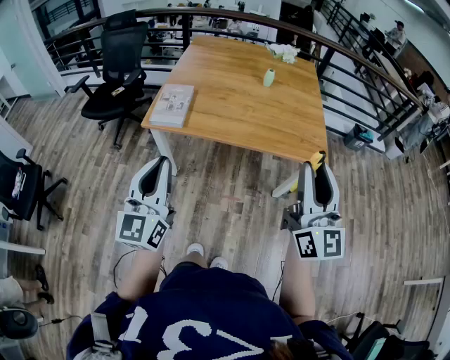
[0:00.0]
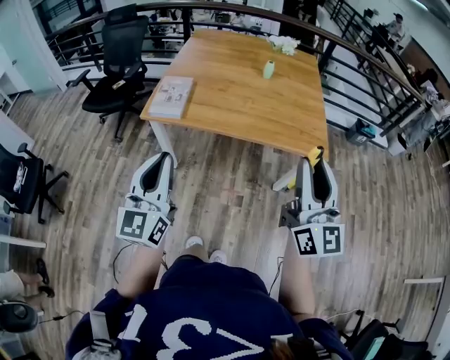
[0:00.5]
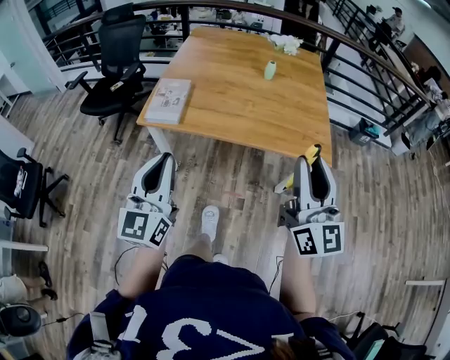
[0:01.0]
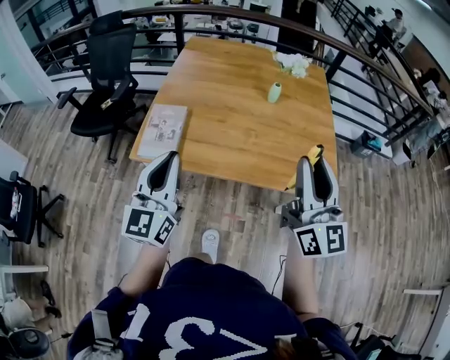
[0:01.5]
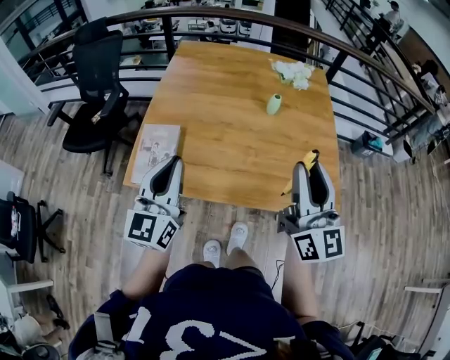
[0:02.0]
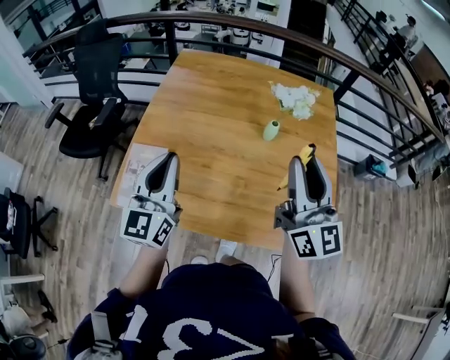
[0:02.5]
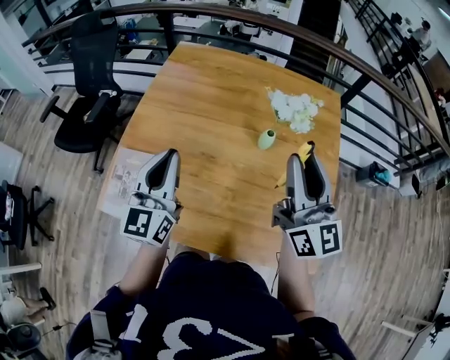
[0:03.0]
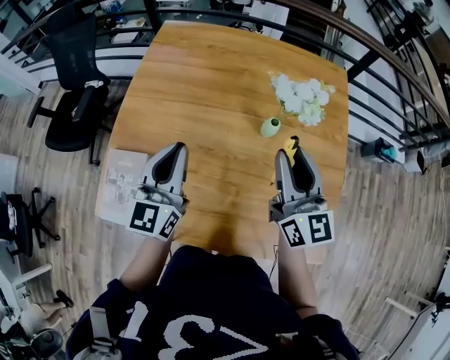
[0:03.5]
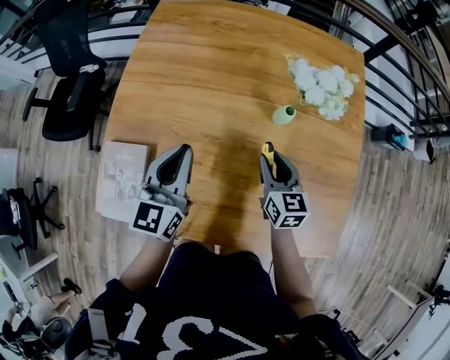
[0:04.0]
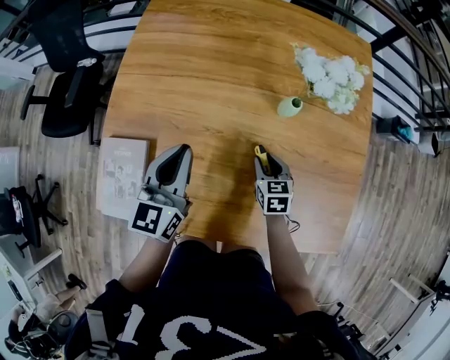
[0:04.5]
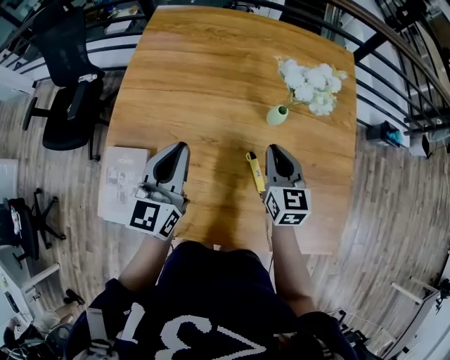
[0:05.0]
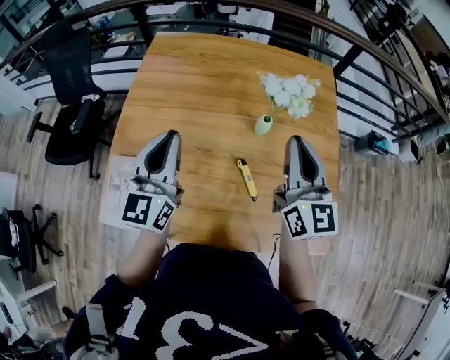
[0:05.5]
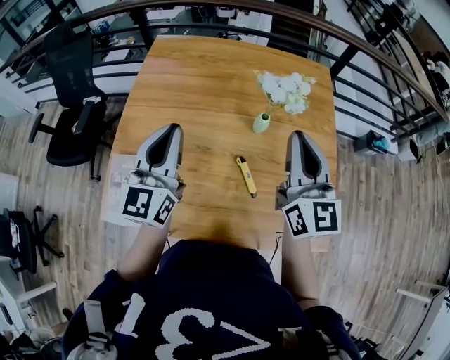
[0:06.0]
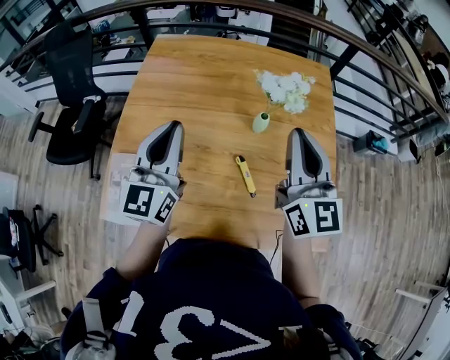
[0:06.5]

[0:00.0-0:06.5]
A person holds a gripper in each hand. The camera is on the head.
0:00.0 to 0:02.0: The two grippers go about 35 cm forward.
0:02.0 to 0:04.5: The right gripper shifts roughly 50 cm downward and forward, and points its fingers approximately 60 degrees further downward. Meanwhile the left gripper goes approximately 30 cm forward and downward.
0:04.5 to 0:06.5: The right gripper travels upward by some 40 cm, tips its fingers upward by roughly 50 degrees, and closes; the left gripper moves upward, roughly 15 cm.

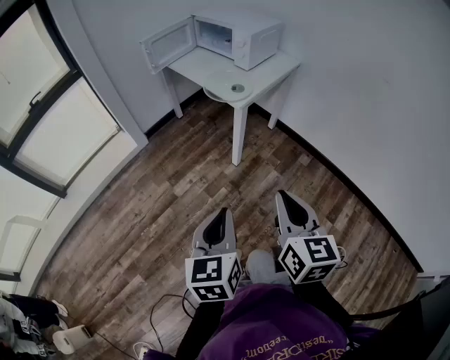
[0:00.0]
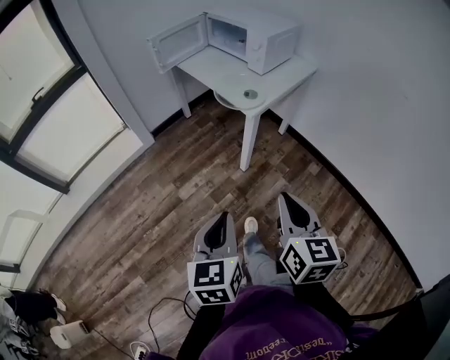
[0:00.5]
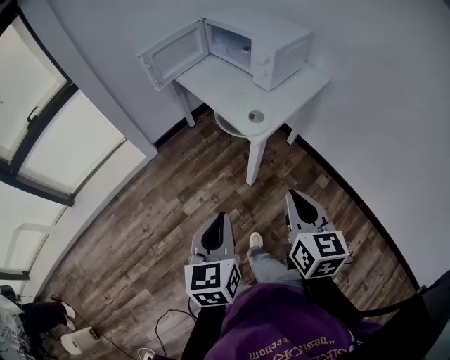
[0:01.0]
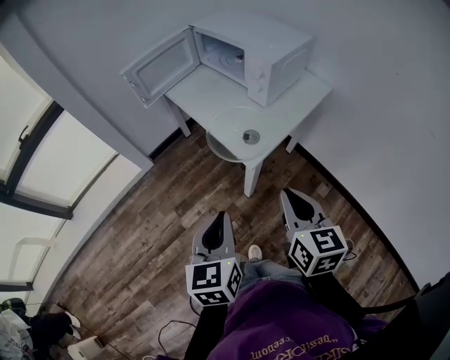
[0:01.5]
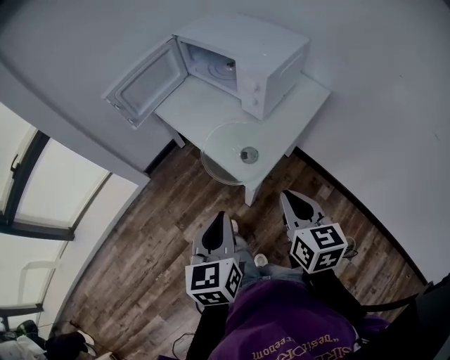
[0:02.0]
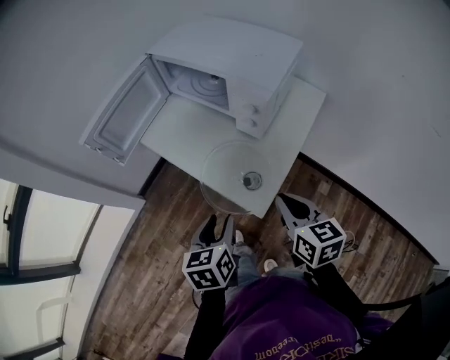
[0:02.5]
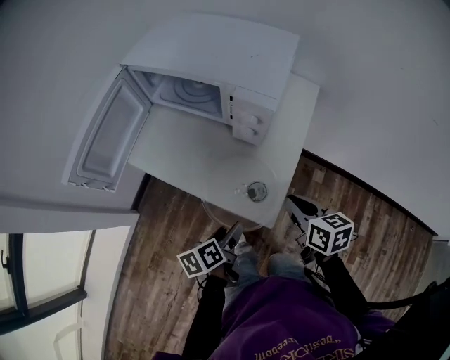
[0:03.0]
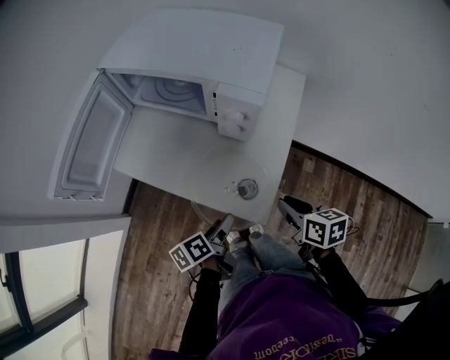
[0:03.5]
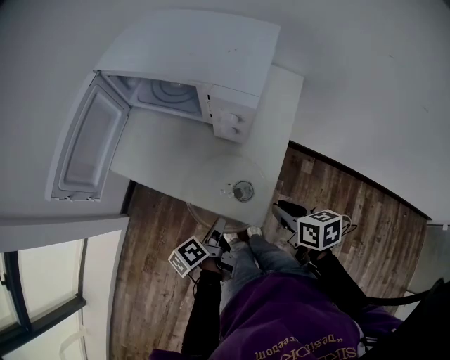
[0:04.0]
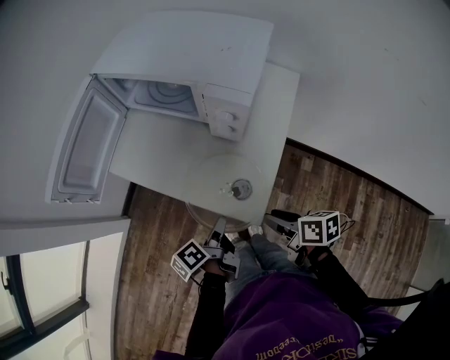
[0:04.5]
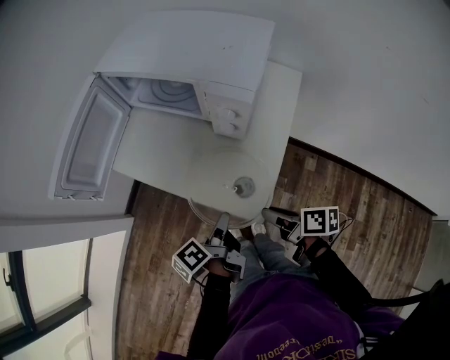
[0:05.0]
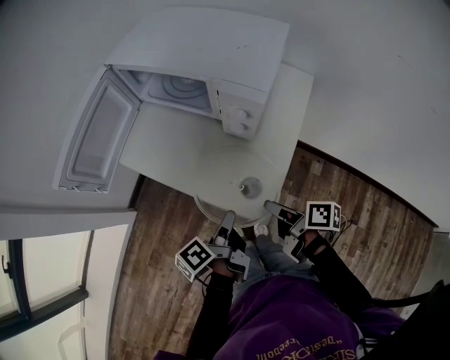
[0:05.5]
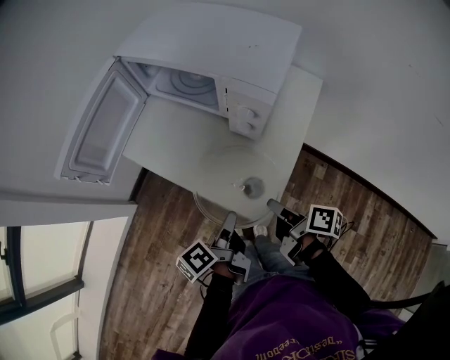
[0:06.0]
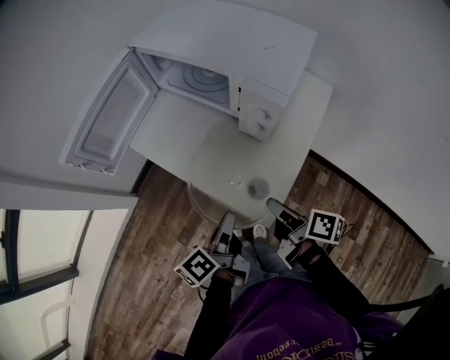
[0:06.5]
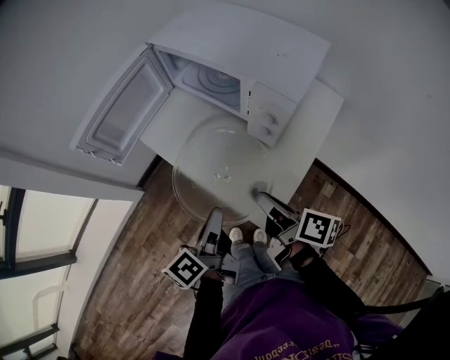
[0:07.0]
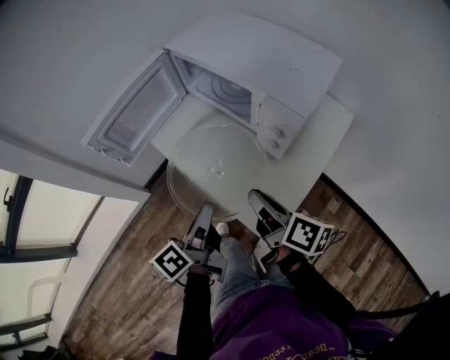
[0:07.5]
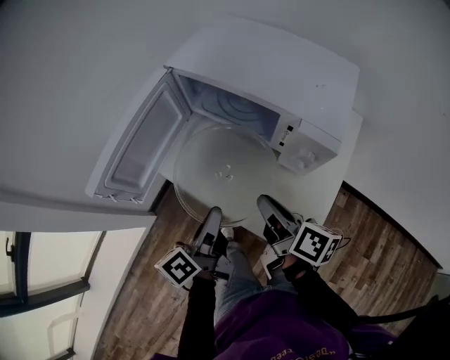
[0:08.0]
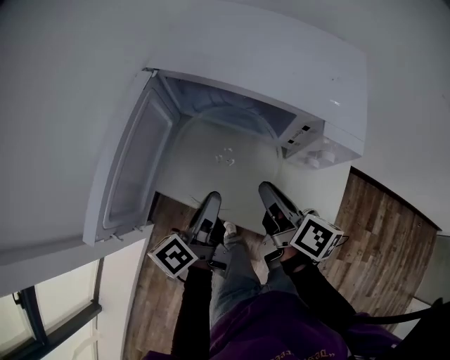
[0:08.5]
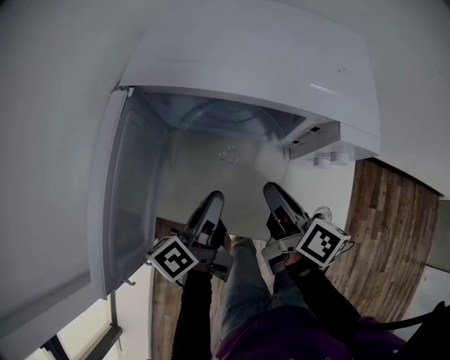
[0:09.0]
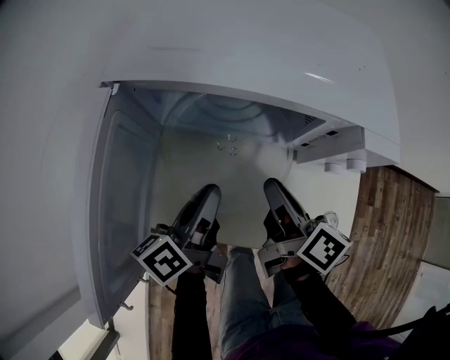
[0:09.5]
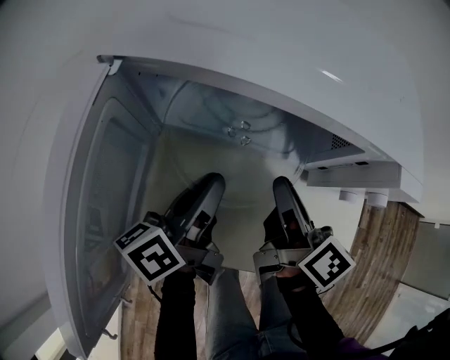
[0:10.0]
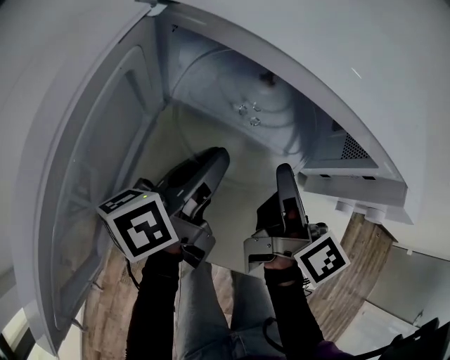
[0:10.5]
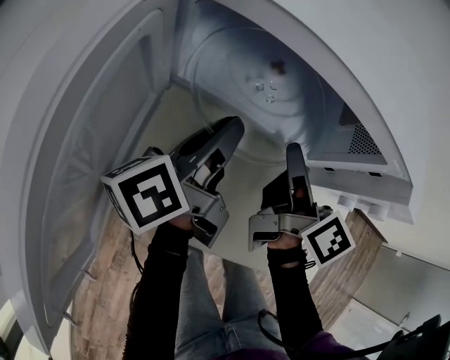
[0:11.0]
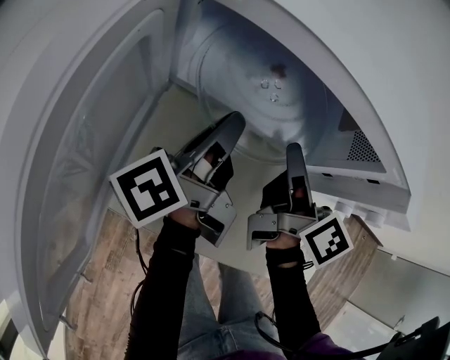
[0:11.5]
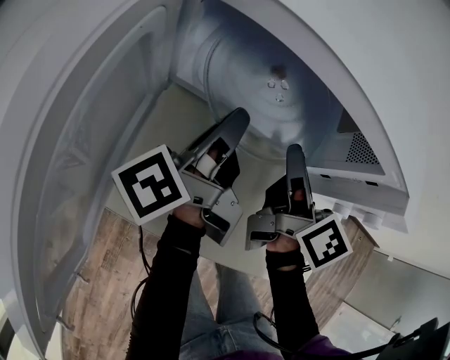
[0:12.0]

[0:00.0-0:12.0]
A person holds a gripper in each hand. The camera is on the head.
0:00.0 to 0:02.0: The two grippers travel together, forward, about 40 cm.
0:02.0 to 0:04.0: Both grippers travel together downward and forward, some 20 cm. The left gripper twists some 50 degrees counterclockwise, seen from behind, and opens, then closes once more. The right gripper changes its angle by some 30 degrees.
0:04.0 to 0:06.0: The left gripper travels upward by about 5 cm, while the right gripper changes its angle by some 40 degrees.
0:06.0 to 0:08.0: The grippers both shift forward, to the left and upward by roughly 20 cm. The right gripper rotates some 20 degrees. Meanwhile the left gripper rotates about 20 degrees.
0:08.0 to 0:10.0: The left gripper ends up about 20 cm from where it was, and swivels some 30 degrees. Meanwhile the right gripper moves roughly 15 cm, and swivels approximately 30 degrees.
0:10.0 to 0:12.0: Both grippers travel together forward, roughly 5 cm. The left gripper swivels about 30 degrees.

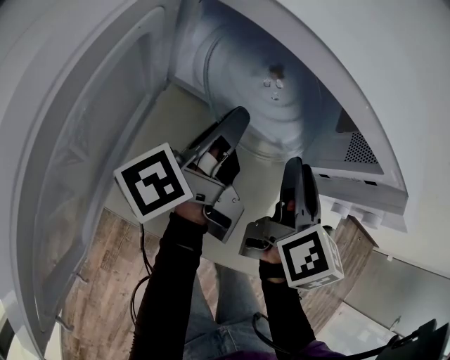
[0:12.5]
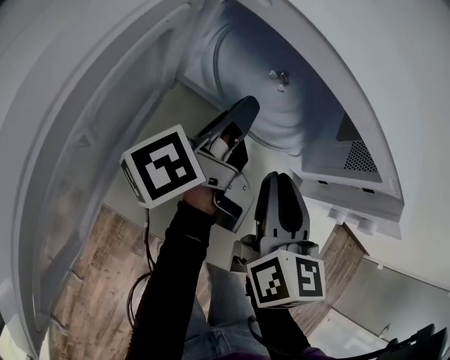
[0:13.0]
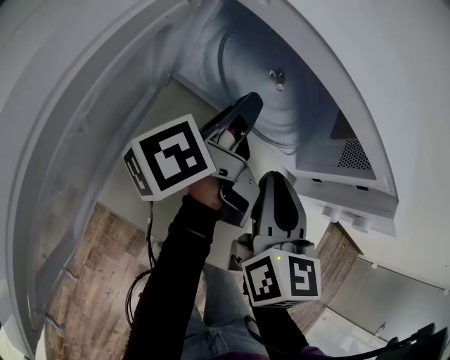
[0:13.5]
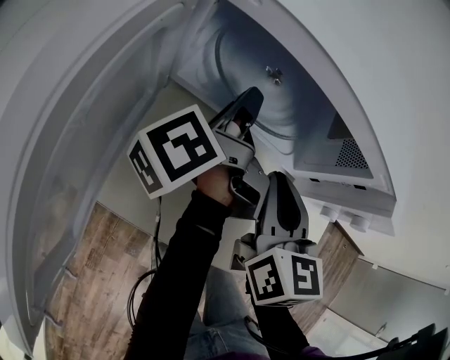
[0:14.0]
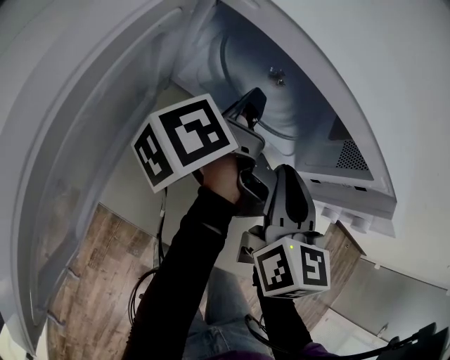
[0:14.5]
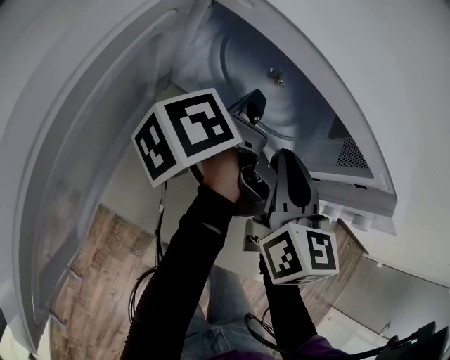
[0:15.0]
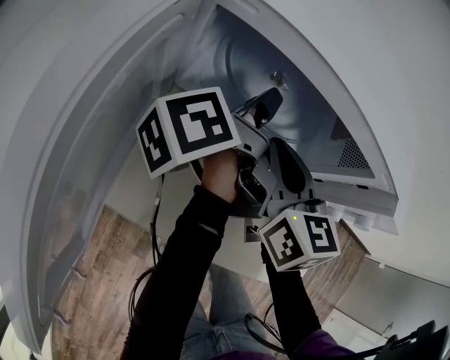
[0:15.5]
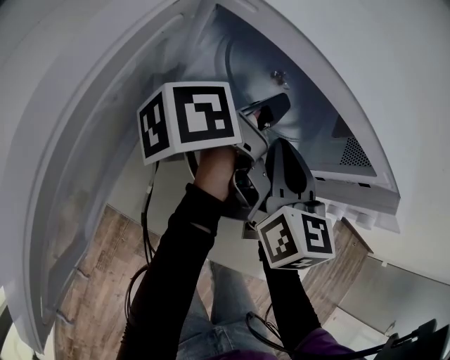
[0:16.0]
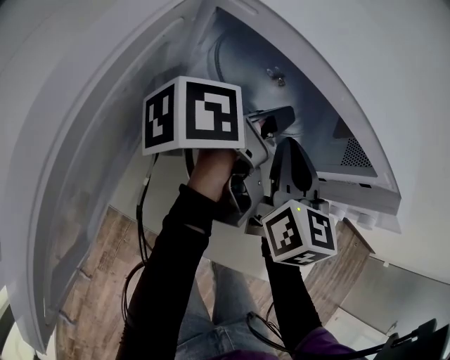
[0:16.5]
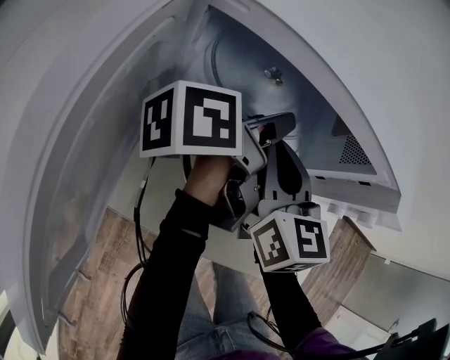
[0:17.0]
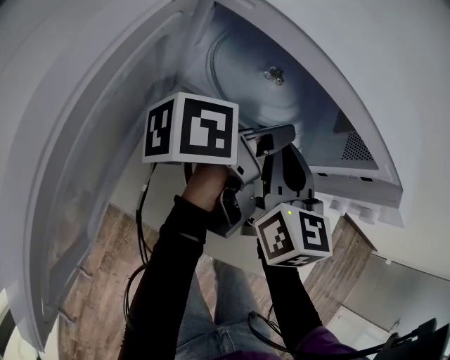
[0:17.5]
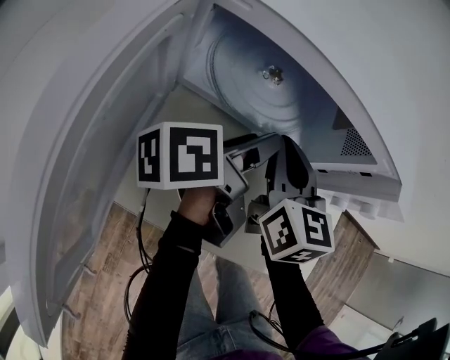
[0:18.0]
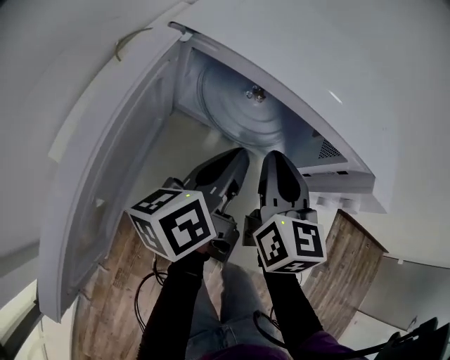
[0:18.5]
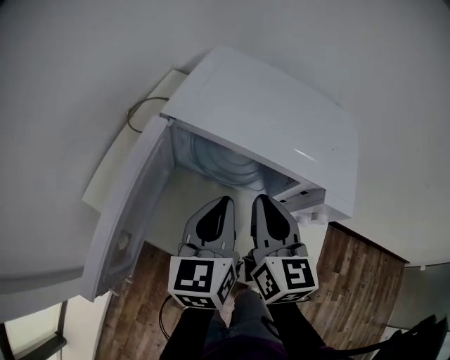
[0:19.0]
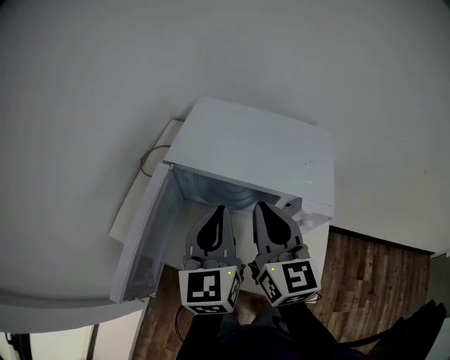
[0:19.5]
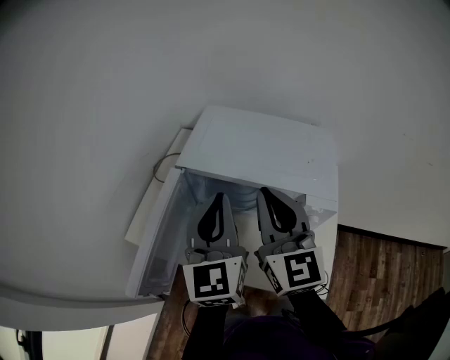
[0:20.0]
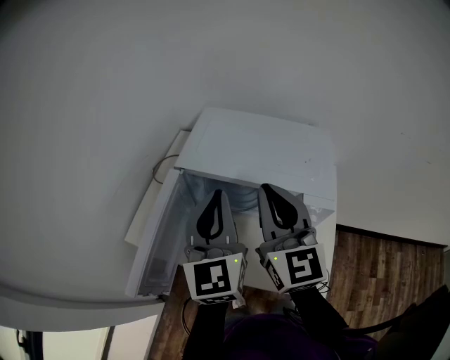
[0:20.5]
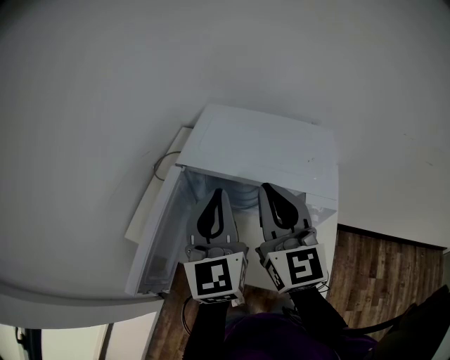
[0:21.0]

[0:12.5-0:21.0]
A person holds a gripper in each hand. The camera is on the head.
0:12.5 to 0:14.5: The right gripper turns by about 20 degrees, and closes up.
0:14.5 to 0:16.5: The left gripper swivels some 30 degrees, and opens its fingers.
0:16.5 to 0:19.0: The right gripper moves upward and backward, approximately 15 cm. Meanwhile the left gripper travels backward and upward by roughly 15 cm, twists approximately 50 degrees clockwise, seen from behind, and closes its fingers.
0:19.0 to 0:21.0: Both grippers move upward, some 15 cm. The right gripper changes its angle by some 20 degrees; the left gripper rotates some 30 degrees.
